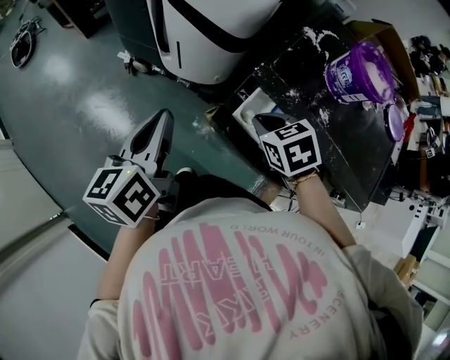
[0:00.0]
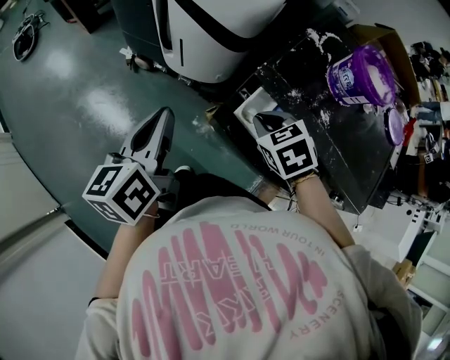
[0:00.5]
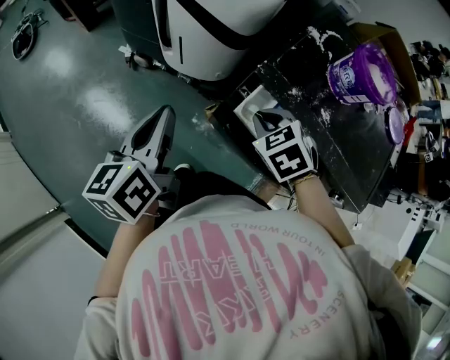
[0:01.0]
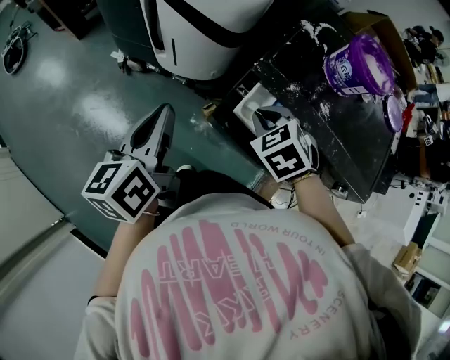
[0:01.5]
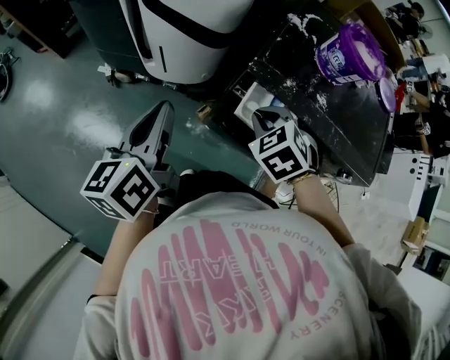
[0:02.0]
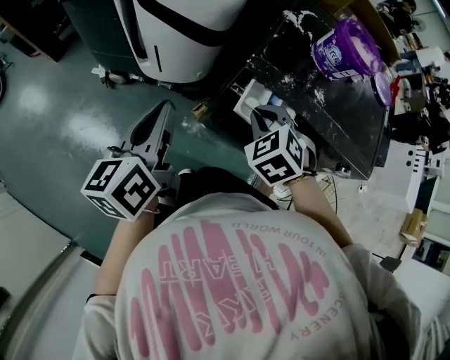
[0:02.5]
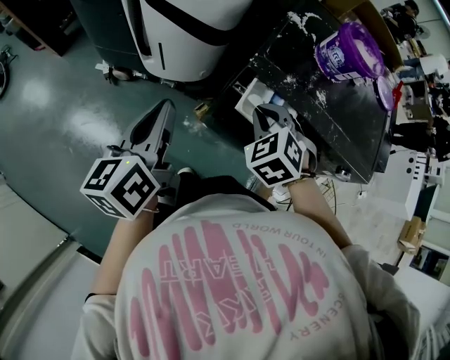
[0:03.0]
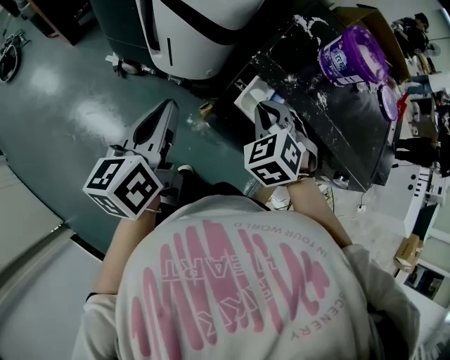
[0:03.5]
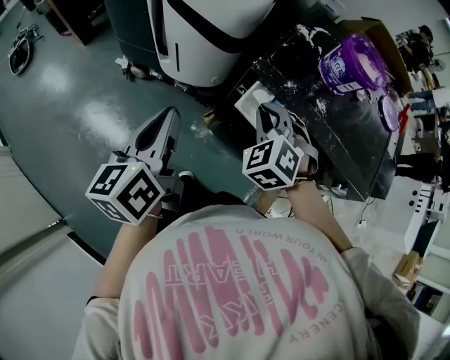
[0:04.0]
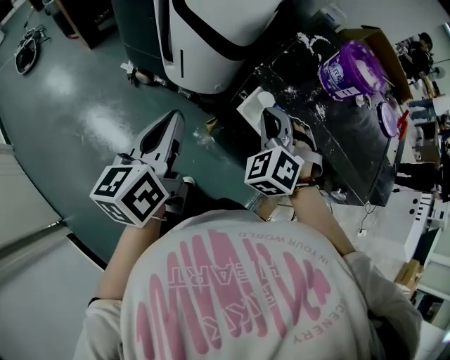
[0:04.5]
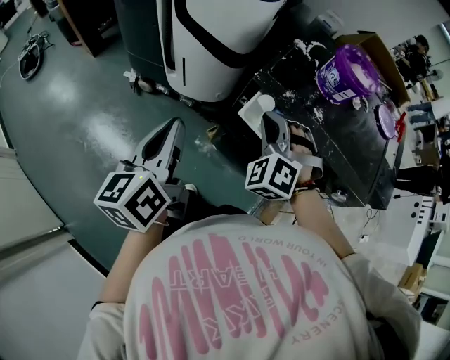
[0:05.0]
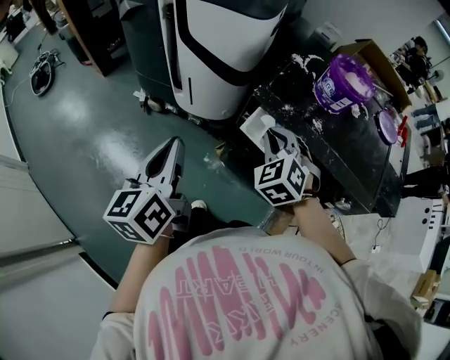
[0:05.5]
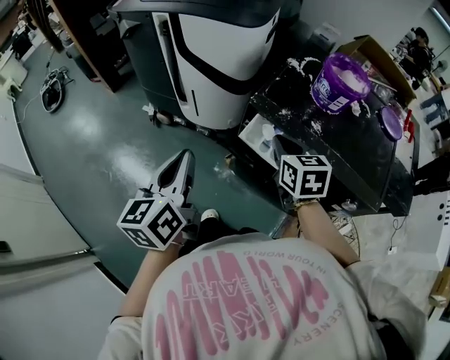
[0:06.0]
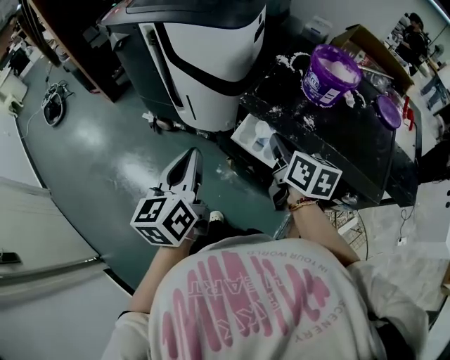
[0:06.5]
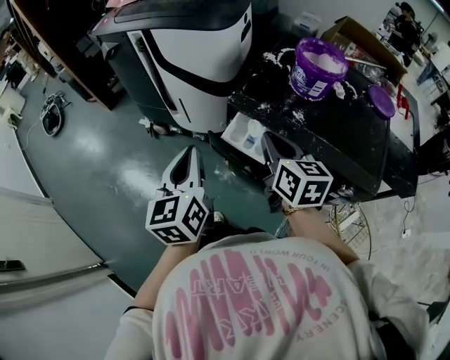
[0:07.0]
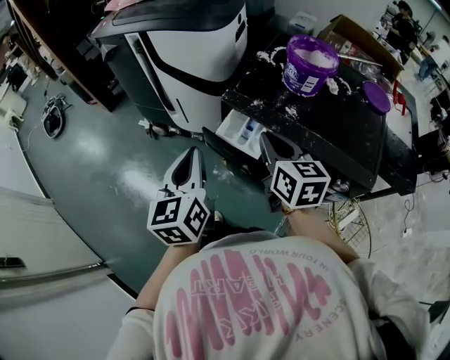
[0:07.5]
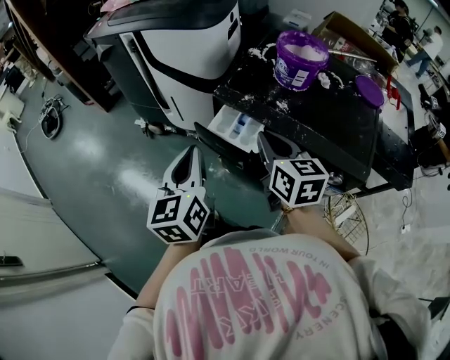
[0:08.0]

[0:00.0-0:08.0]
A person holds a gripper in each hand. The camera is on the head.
0.0 to 2.0 s: The right gripper rotates approximately 20 degrees.
2.0 to 4.0 s: The right gripper rotates some 30 degrees, while the left gripper travels backward by about 5 cm.
4.0 to 6.0 s: The right gripper shifts by about 5 cm, and twists roughly 60 degrees clockwise, seen from behind; the left gripper shifts by about 5 cm.
6.0 to 8.0 s: The right gripper shifts roughly 10 cm backward and upward. The left gripper moves to the right, some 10 cm.

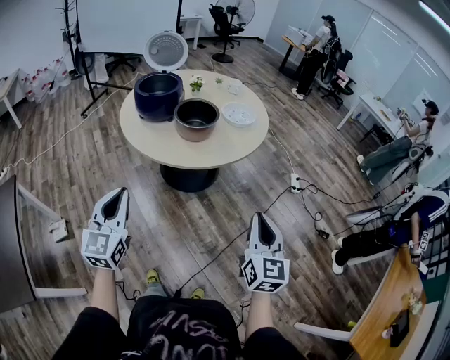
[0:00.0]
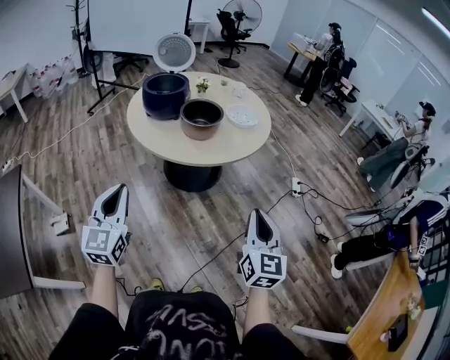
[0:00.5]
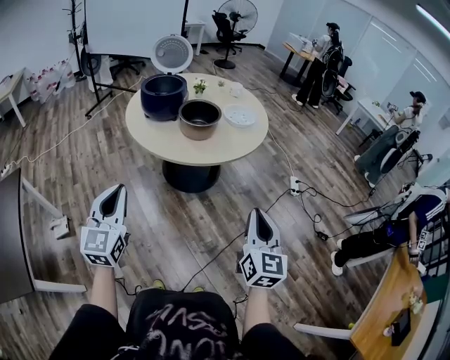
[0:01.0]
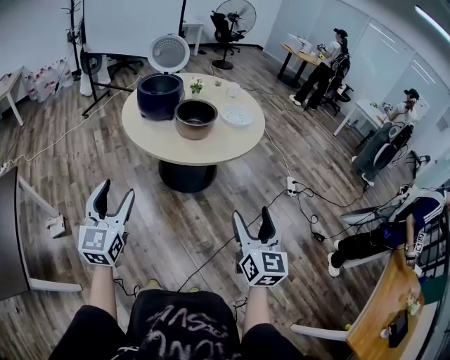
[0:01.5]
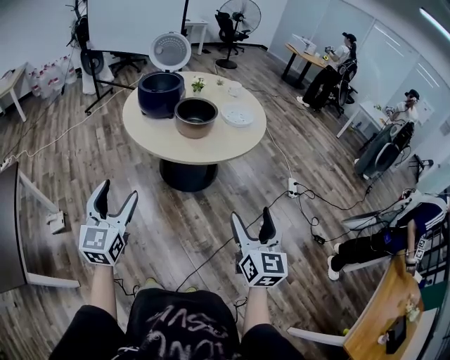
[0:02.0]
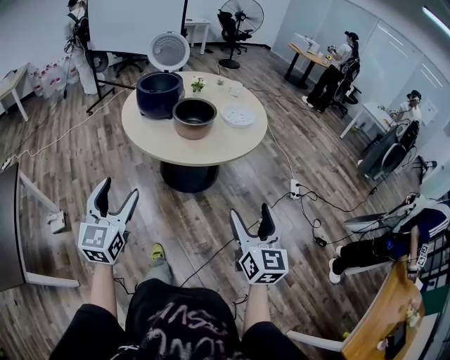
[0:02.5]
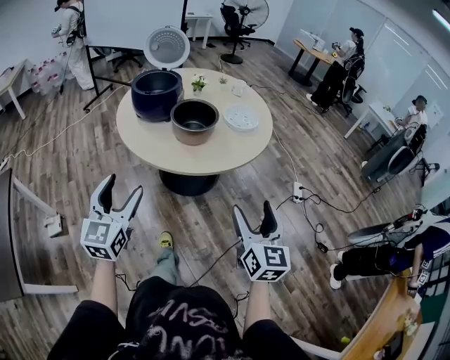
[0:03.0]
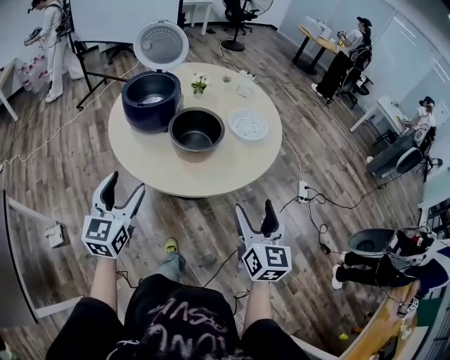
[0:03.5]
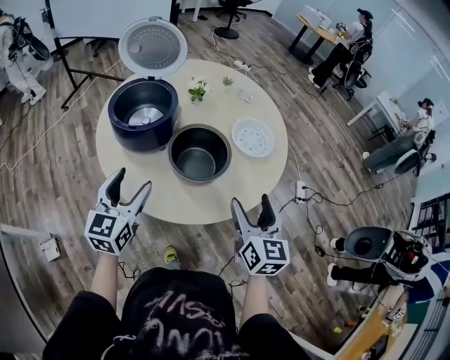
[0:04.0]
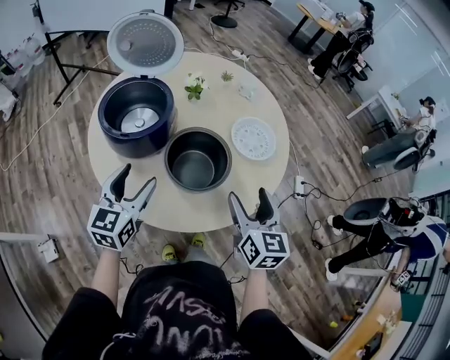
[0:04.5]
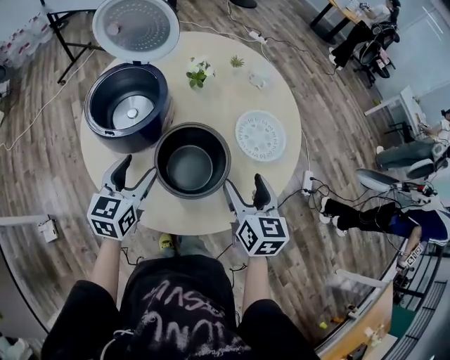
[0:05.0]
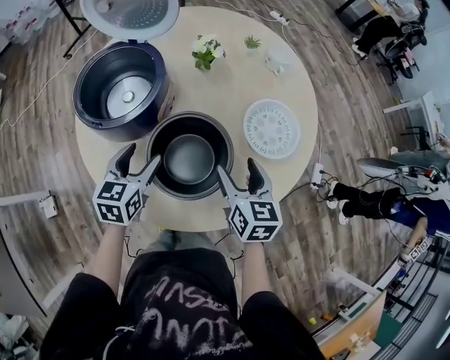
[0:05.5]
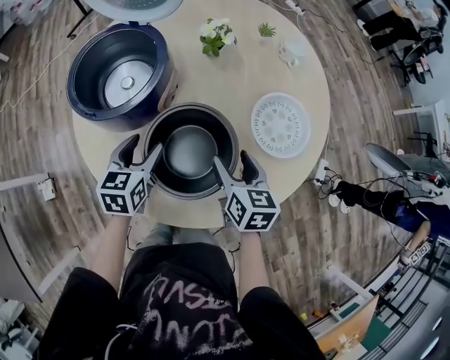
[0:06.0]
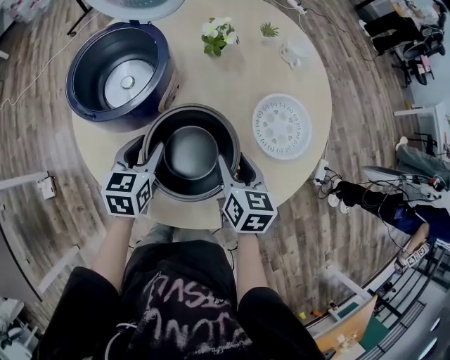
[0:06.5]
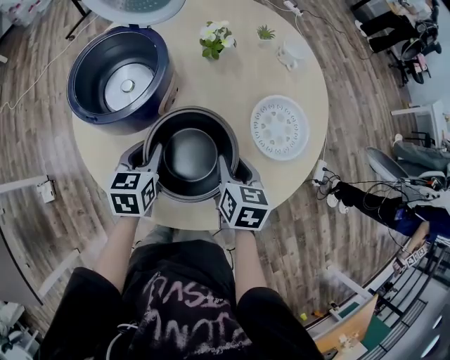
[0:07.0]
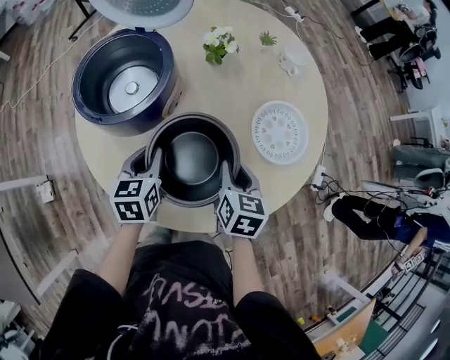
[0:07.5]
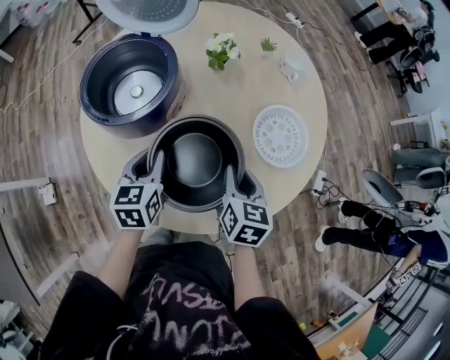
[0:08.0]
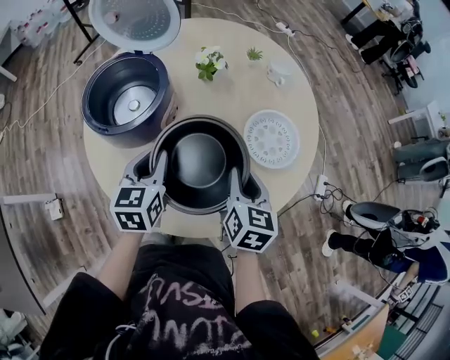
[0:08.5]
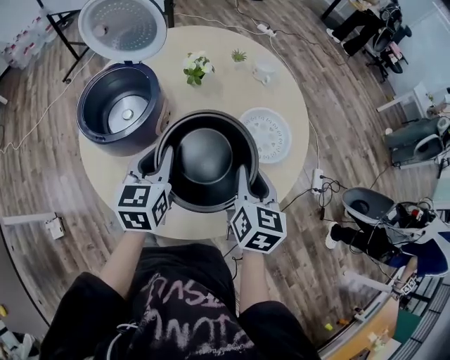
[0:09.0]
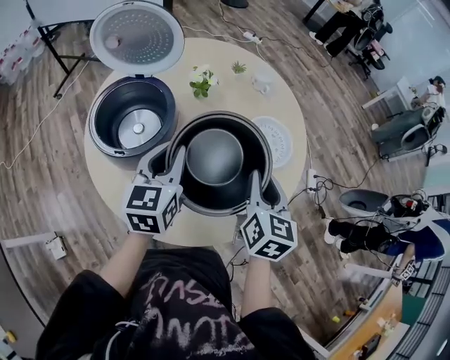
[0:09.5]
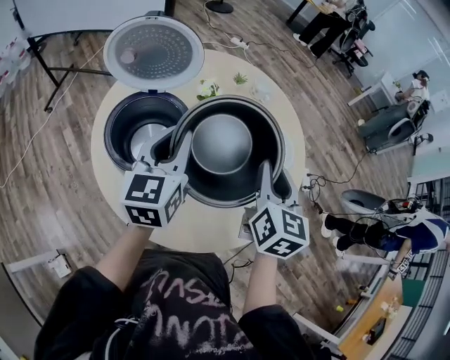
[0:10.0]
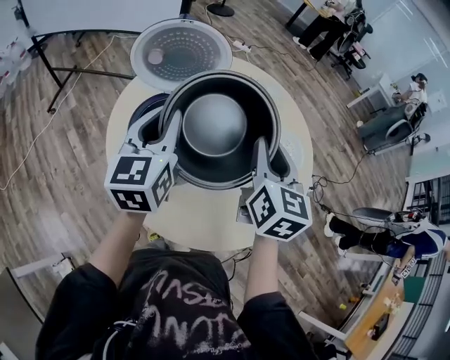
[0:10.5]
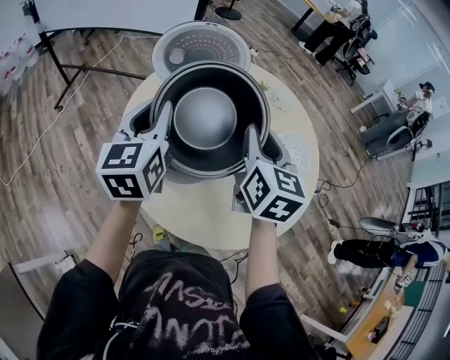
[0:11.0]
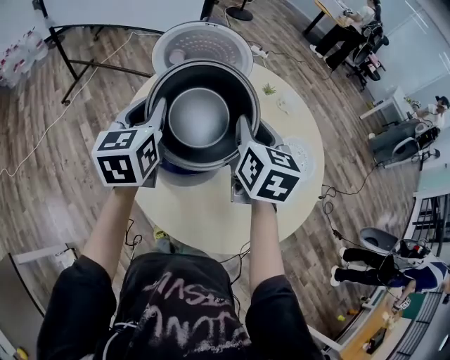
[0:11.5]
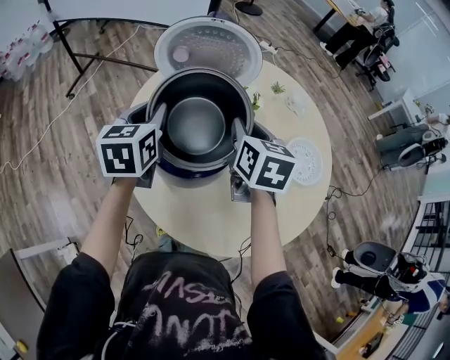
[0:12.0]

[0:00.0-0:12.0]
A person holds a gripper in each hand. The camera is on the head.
0.0 to 2.0 s: The right gripper opens its fingers, while the left gripper opens its fingers.
2.0 to 4.0 s: The two grippers travel together, forward, about 40 cm.
4.0 to 6.0 s: The right gripper goes roughly 25 cm forward and downward, and rotates approximately 30 degrees. Meanwhile the left gripper travels downward and forward by about 25 cm, and swivels about 30 degrees.
6.0 to 8.0 s: The right gripper closes its fingers. Meanwhile the left gripper closes its fingers.
8.0 to 10.0 s: The right gripper is displaced upward by about 20 cm, and changes its angle by approximately 30 degrees. Meanwhile the left gripper moves upward and forward, about 25 cm, and rotates roughly 30 degrees.
10.0 to 12.0 s: The right gripper goes about 25 cm to the left and forward, and swivels about 20 degrees. The left gripper is displaced to the left by roughly 20 cm.

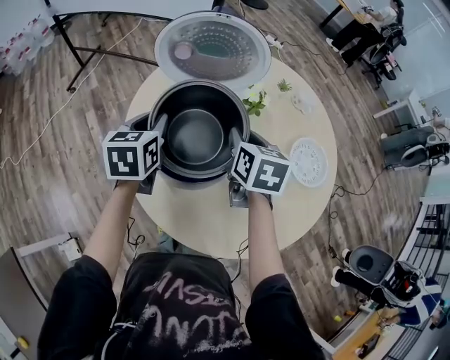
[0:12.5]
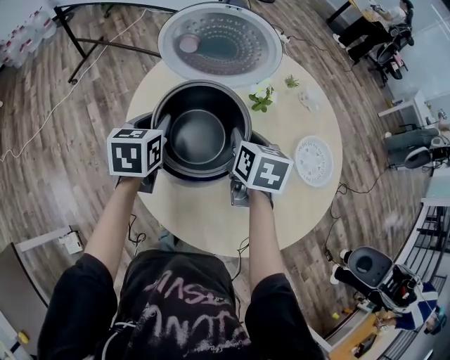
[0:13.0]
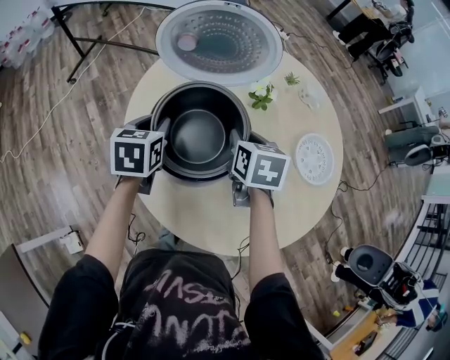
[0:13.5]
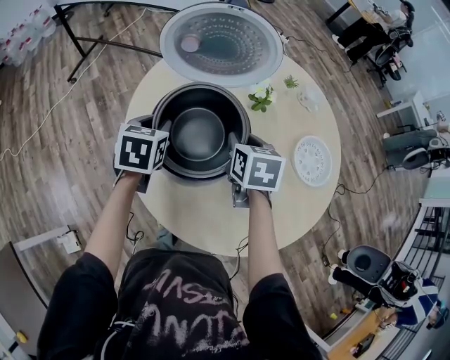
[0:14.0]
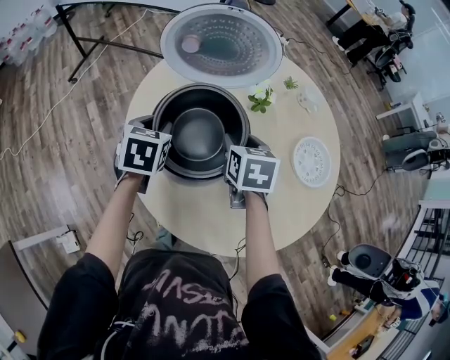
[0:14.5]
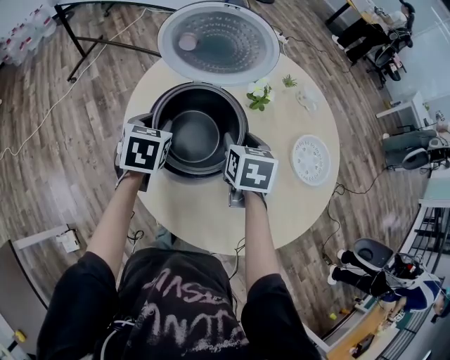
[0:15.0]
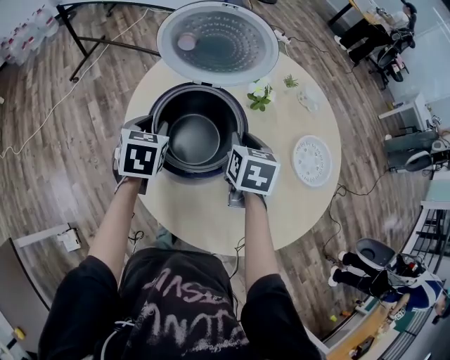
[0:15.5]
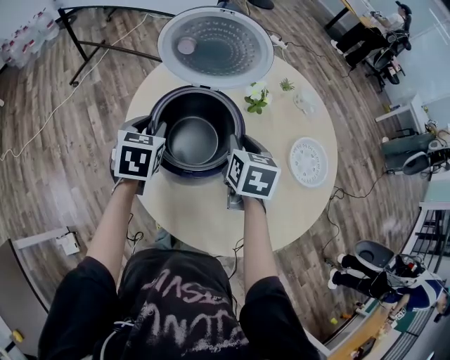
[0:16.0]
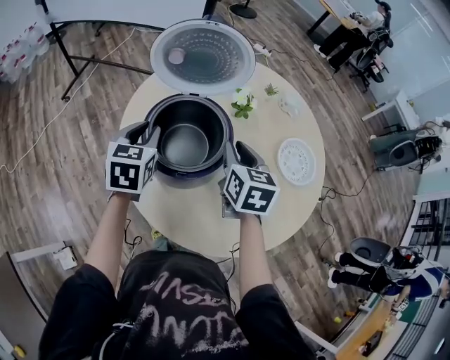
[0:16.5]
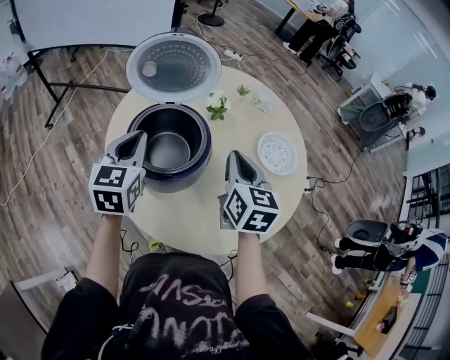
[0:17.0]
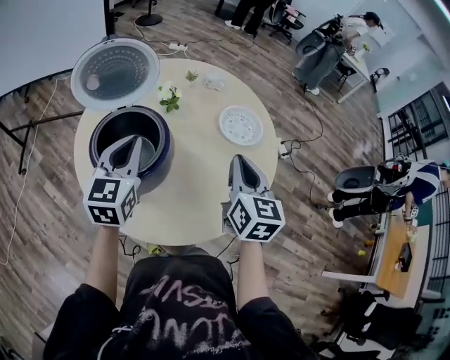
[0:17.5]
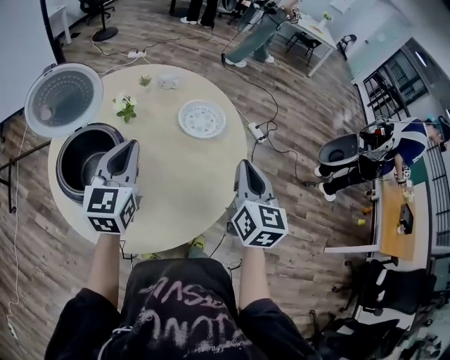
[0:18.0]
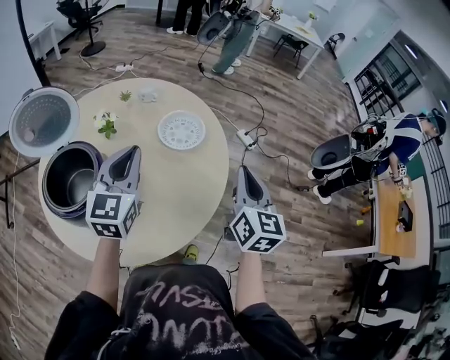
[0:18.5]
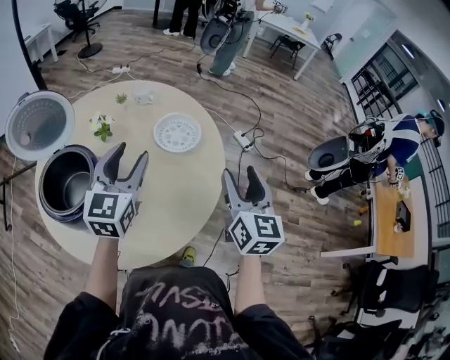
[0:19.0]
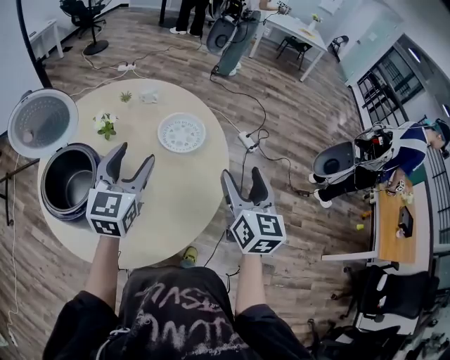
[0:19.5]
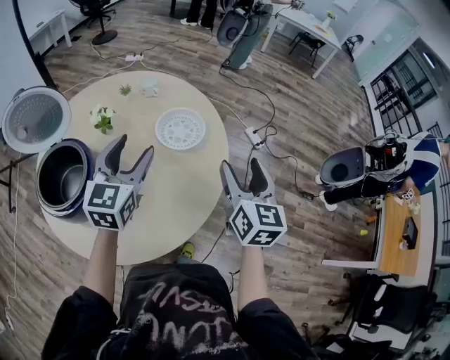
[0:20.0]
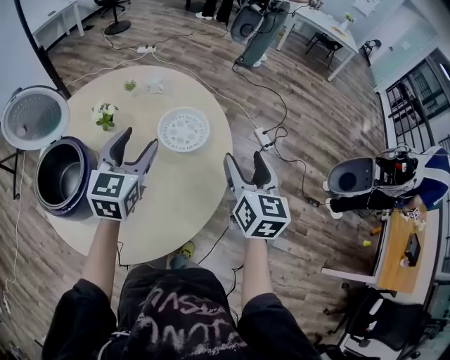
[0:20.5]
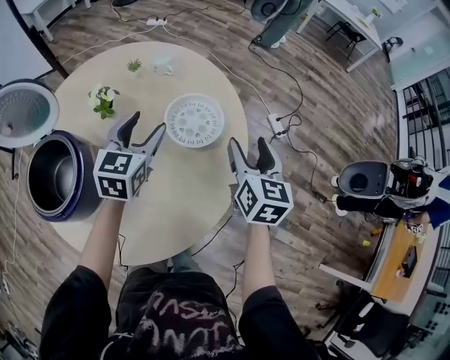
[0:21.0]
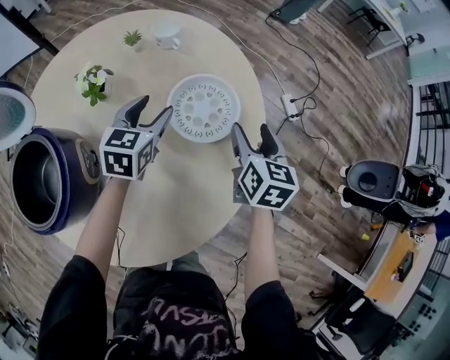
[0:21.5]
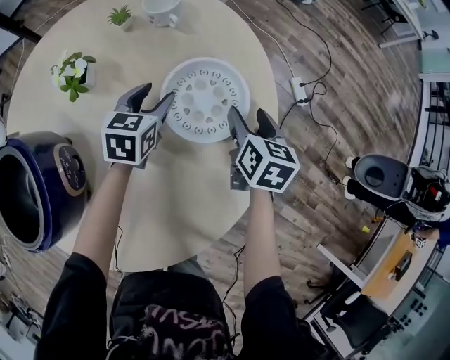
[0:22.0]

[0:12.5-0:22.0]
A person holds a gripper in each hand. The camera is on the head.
12.5 to 14.5 s: The right gripper shifts by some 5 cm. Meanwhile the left gripper travels downward by approximately 5 cm.
14.5 to 16.5 s: The two grippers go roughly 5 cm upward.
16.5 to 18.0 s: The left gripper shifts by roughly 25 cm, and turns by approximately 40 degrees. The right gripper ends up about 35 cm from where it was, and swivels approximately 40 degrees.
18.0 to 20.0 s: Both grippers move to the right and forward, roughly 15 cm. The left gripper opens its fingers; the right gripper opens its fingers.
20.0 to 22.0 s: Both grippers move downward and forward, about 40 cm. The right gripper changes its angle by some 30 degrees; the left gripper swivels some 30 degrees.
